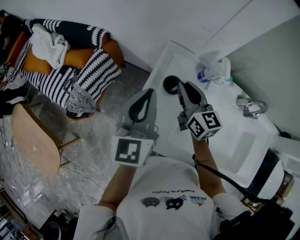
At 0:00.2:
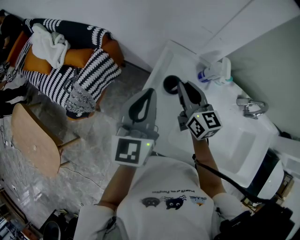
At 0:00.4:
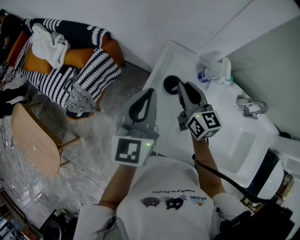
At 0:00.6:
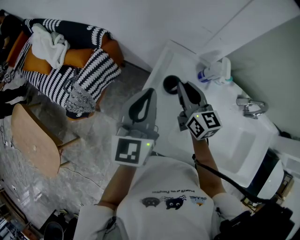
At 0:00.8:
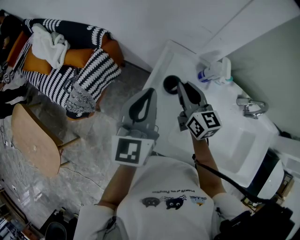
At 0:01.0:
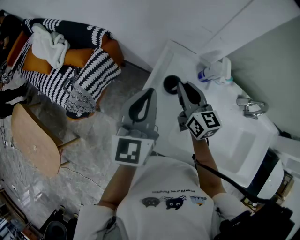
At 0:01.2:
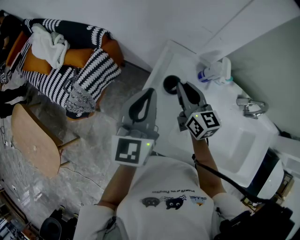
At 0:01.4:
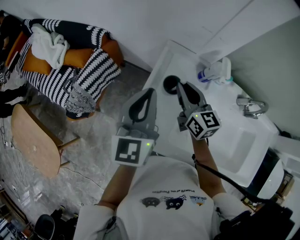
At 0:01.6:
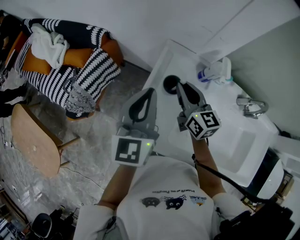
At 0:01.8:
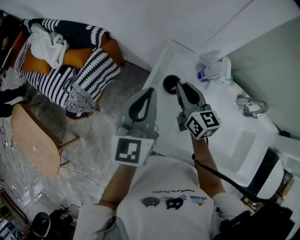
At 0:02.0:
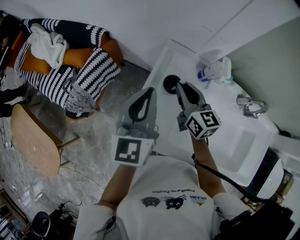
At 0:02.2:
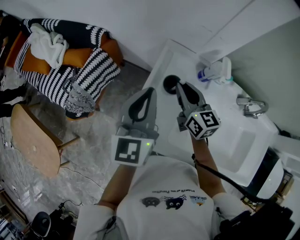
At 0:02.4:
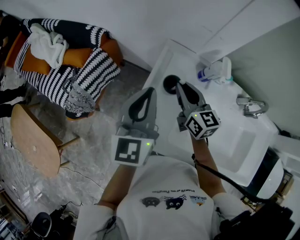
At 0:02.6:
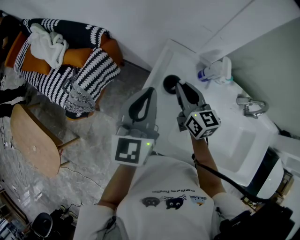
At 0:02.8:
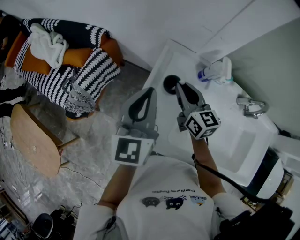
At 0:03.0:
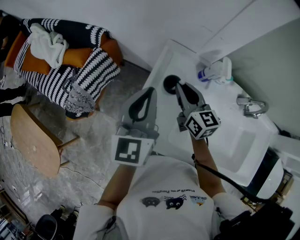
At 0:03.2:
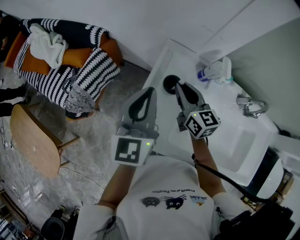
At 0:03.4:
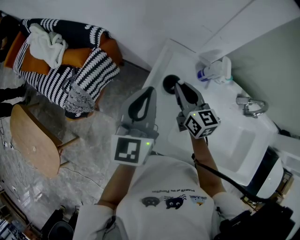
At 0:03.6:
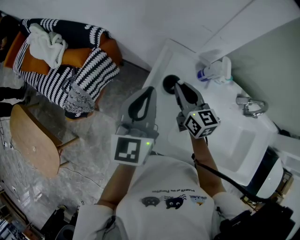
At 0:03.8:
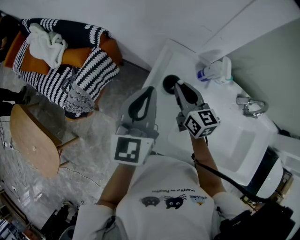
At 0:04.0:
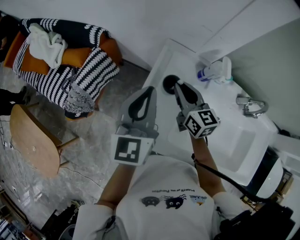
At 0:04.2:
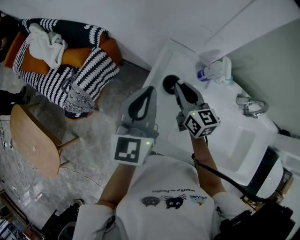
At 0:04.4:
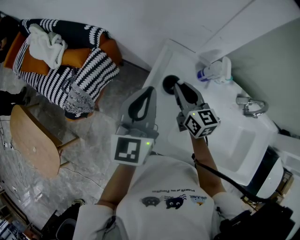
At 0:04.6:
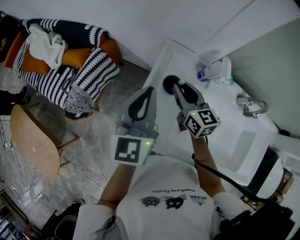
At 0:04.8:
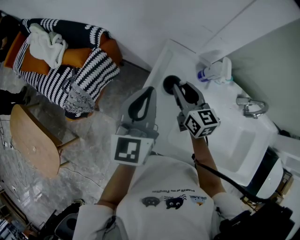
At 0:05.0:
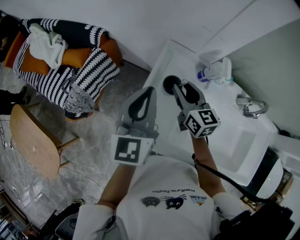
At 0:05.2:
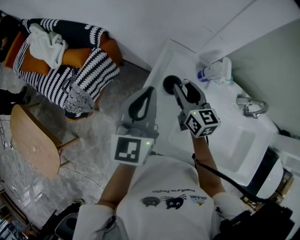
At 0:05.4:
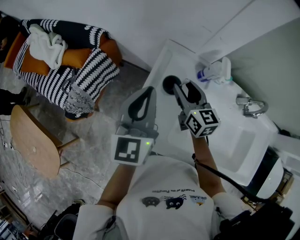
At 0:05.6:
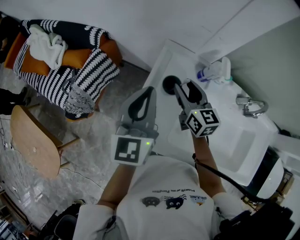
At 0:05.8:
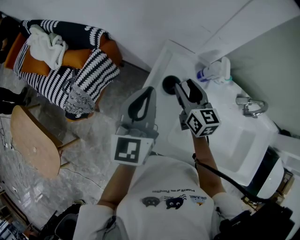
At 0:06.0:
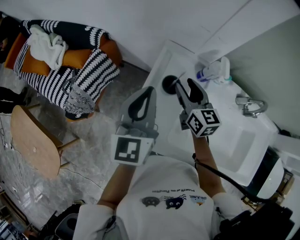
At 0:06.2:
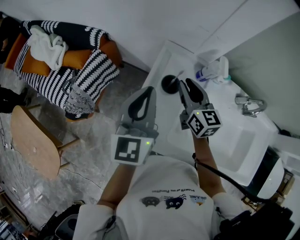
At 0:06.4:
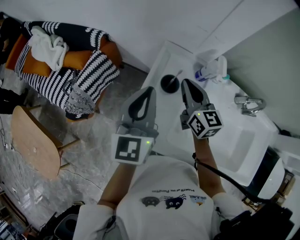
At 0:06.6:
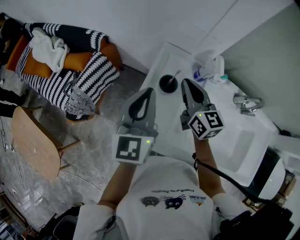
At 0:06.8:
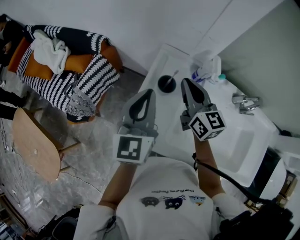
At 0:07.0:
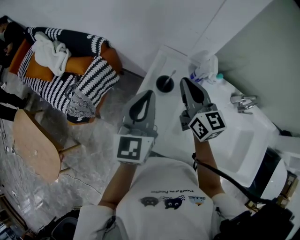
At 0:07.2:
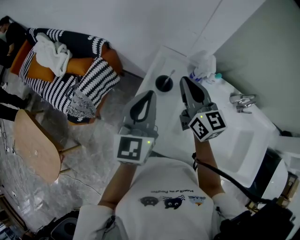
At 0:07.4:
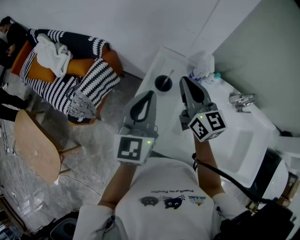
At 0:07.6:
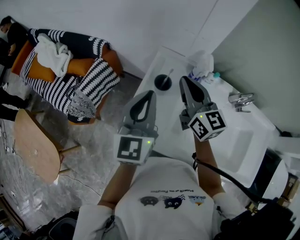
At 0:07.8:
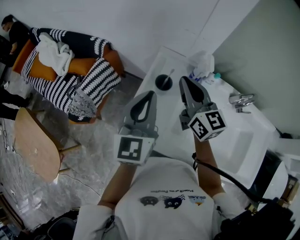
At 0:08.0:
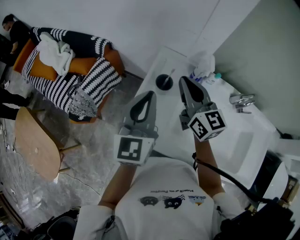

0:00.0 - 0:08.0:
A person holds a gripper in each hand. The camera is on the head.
0:00.0 - 0:01.6: The two grippers keep their place.
0:01.6 - 0:03.2: Neither gripper changes place.
0:03.2 - 0:04.8: Neither gripper changes place.
0:04.8 - 0:06.4: The right gripper closes up.
0:06.4 - 0:08.0: The left gripper heads backward, covering roughly 5 cm. The right gripper heads upward, covering about 10 cm.

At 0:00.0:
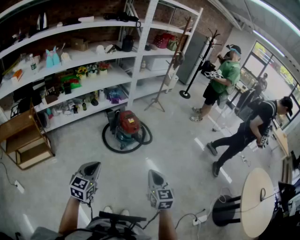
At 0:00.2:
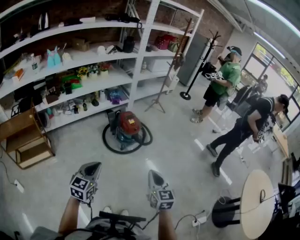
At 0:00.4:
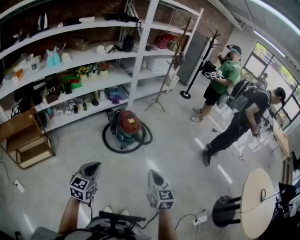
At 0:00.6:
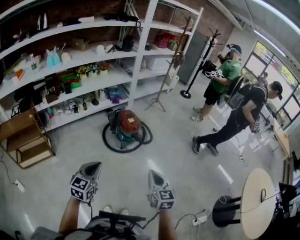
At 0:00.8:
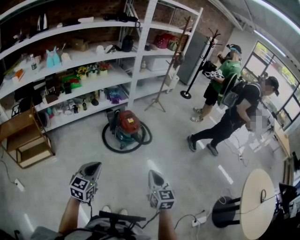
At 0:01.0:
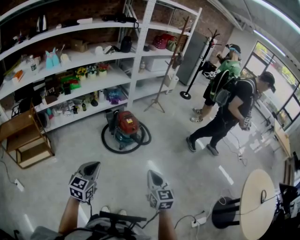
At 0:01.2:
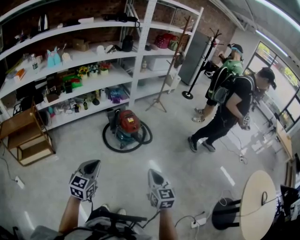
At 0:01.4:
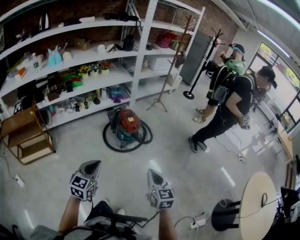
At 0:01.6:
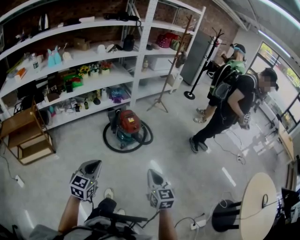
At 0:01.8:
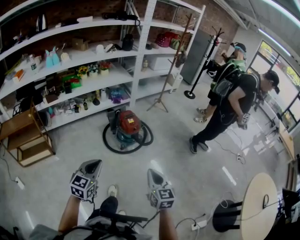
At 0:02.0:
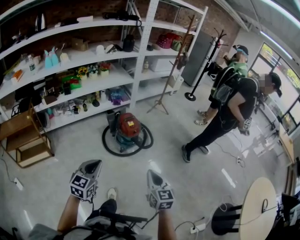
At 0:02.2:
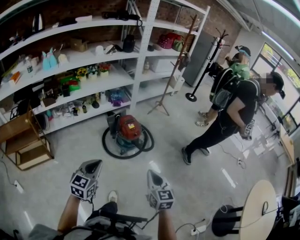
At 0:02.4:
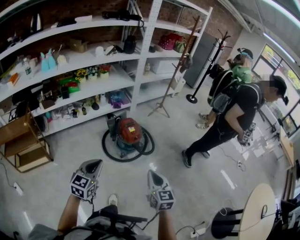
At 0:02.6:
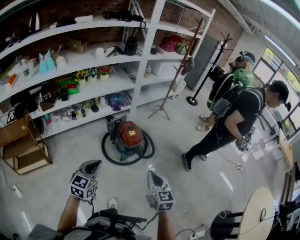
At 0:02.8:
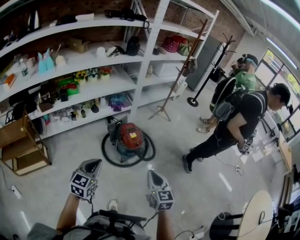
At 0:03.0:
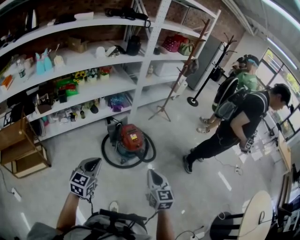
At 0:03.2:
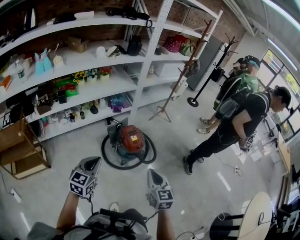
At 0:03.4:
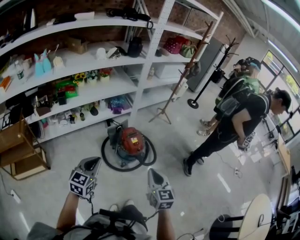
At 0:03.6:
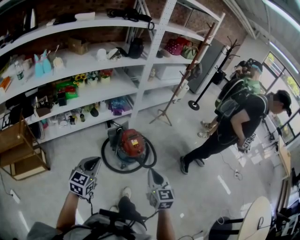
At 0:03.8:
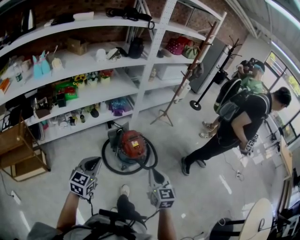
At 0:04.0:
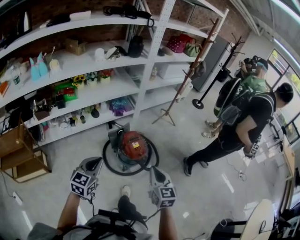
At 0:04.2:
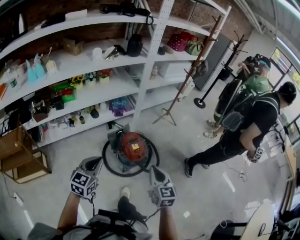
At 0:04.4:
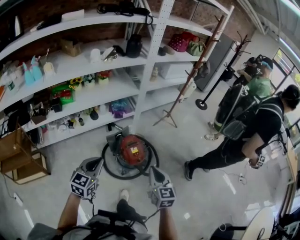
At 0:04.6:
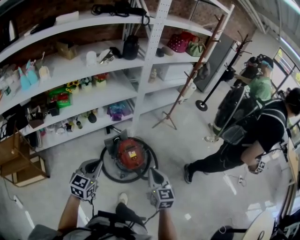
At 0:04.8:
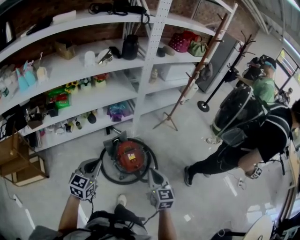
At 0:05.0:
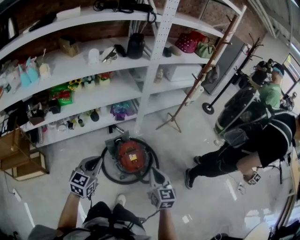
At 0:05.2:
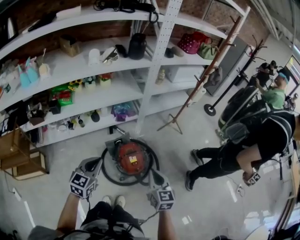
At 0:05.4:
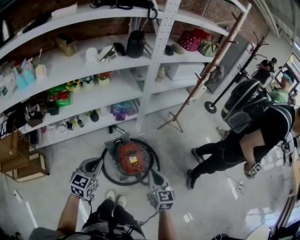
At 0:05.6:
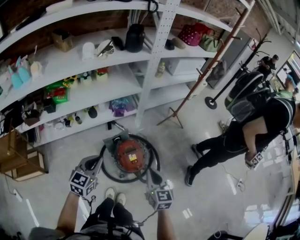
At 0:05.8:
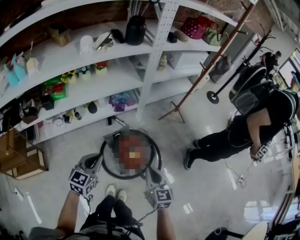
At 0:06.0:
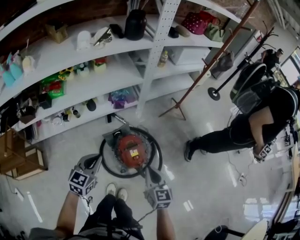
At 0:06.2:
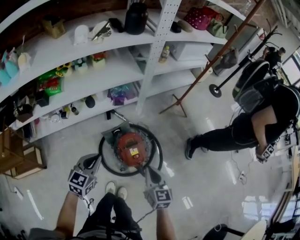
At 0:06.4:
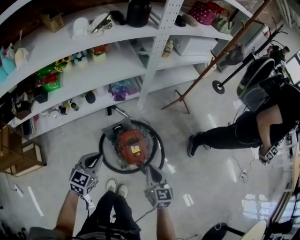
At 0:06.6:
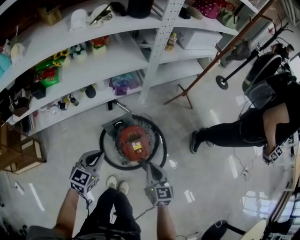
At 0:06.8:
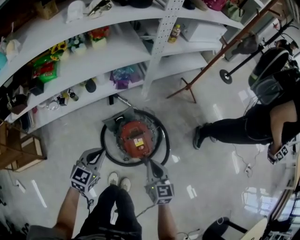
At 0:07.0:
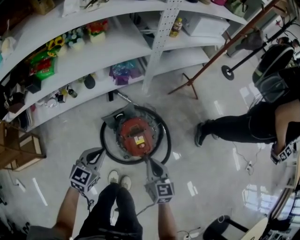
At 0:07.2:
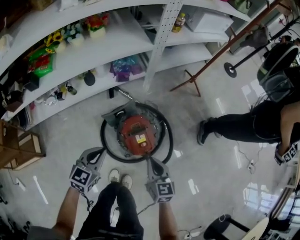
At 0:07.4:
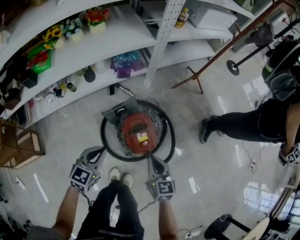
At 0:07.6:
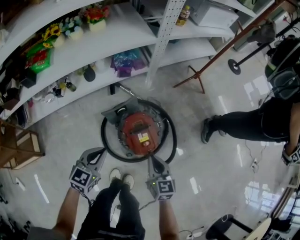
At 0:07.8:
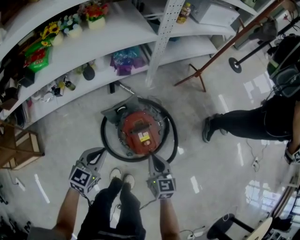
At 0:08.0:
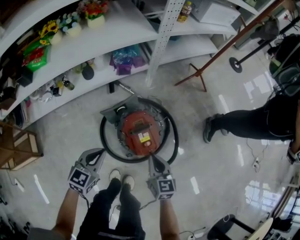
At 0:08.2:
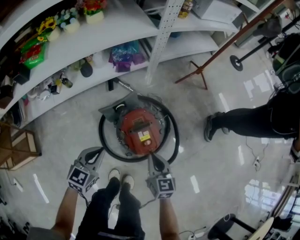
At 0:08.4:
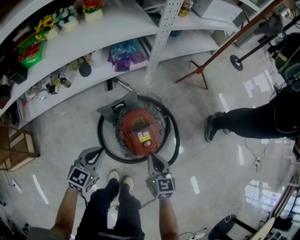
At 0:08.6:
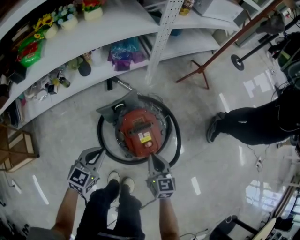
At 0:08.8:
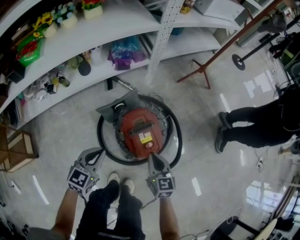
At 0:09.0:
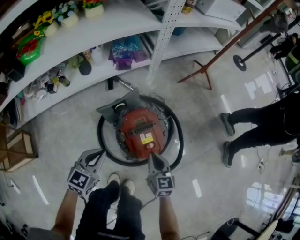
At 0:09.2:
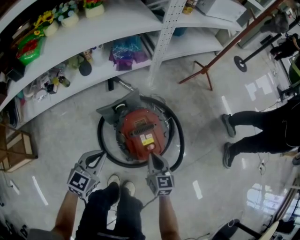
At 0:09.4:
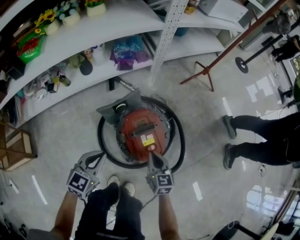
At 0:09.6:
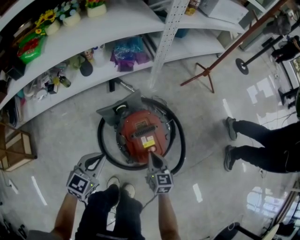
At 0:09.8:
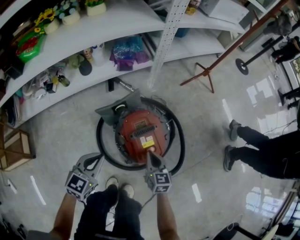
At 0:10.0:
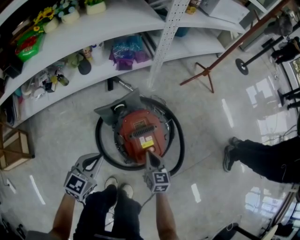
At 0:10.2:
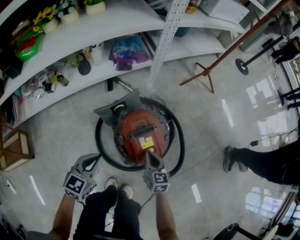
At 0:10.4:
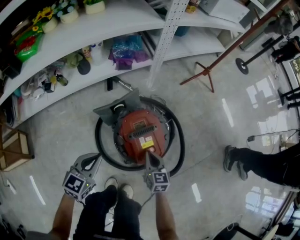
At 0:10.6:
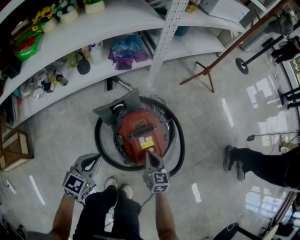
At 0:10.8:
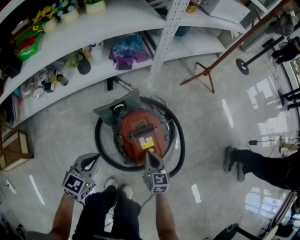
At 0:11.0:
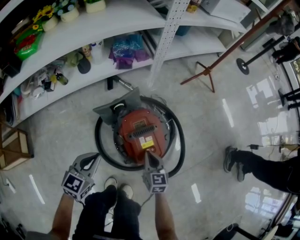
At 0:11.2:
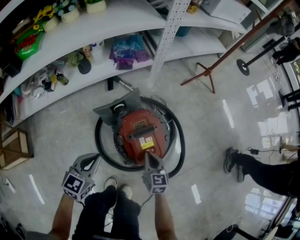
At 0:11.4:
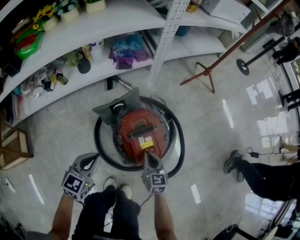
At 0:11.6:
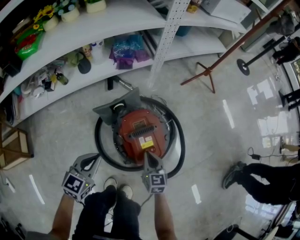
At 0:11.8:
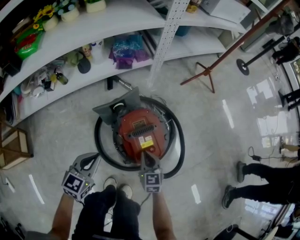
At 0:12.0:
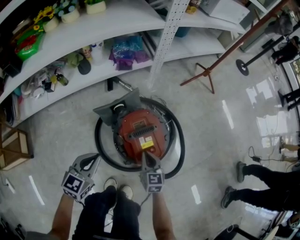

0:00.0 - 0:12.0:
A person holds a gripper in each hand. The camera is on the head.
0:00.0 - 0:01.6: Both grippers travel together to the right, roughly 5 cm.
0:01.6 - 0:03.0: The grippers both shift forward by roughly 25 cm.
0:03.0 - 0:04.4: Both grippers travel together forward, some 20 cm.
0:04.4 - 0:06.0: The grippers both shift forward and downward by some 20 cm.
0:06.0 - 0:07.6: Both grippers move downward, about 20 cm.
0:07.6 - 0:09.0: Both grippers travel together downward, approximately 15 cm.
0:09.0 - 0:10.4: The right gripper moves downward, some 10 cm.
0:10.4 - 0:12.0: The grippers stay close to where they were, moving slightly.

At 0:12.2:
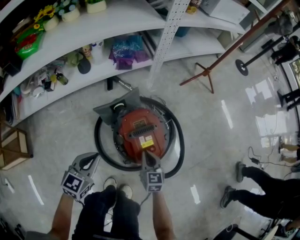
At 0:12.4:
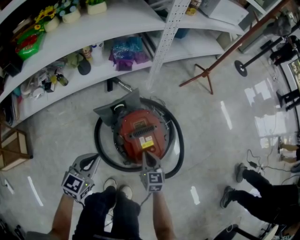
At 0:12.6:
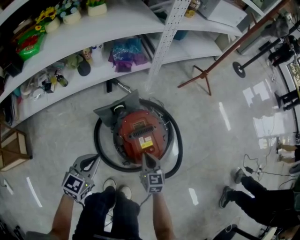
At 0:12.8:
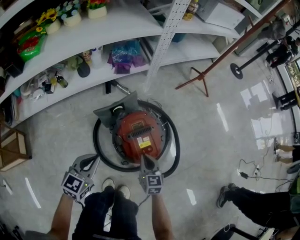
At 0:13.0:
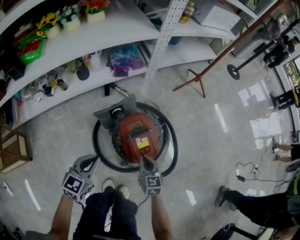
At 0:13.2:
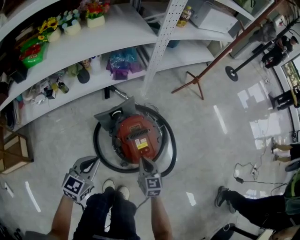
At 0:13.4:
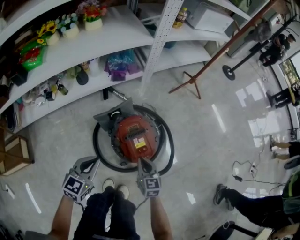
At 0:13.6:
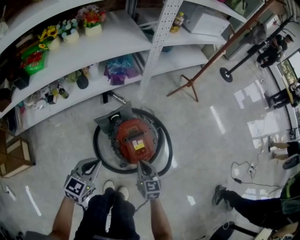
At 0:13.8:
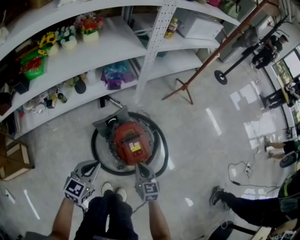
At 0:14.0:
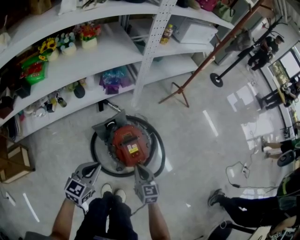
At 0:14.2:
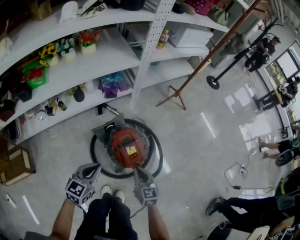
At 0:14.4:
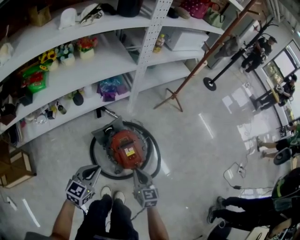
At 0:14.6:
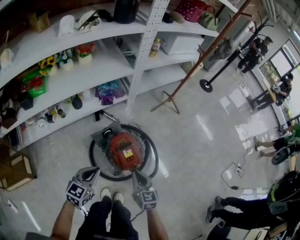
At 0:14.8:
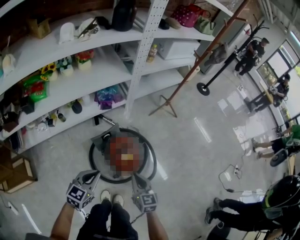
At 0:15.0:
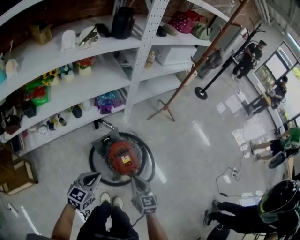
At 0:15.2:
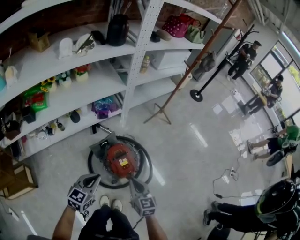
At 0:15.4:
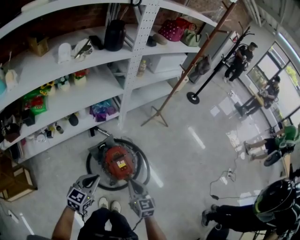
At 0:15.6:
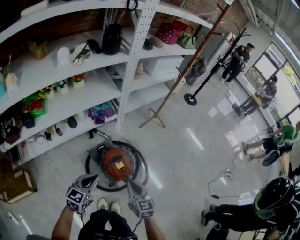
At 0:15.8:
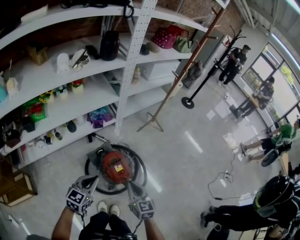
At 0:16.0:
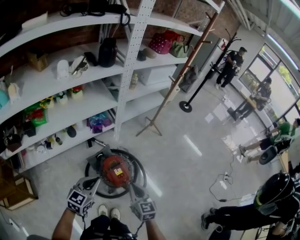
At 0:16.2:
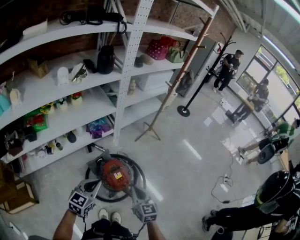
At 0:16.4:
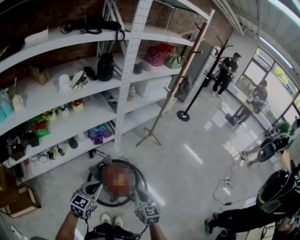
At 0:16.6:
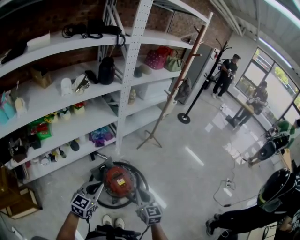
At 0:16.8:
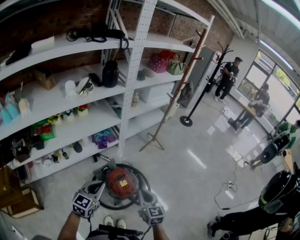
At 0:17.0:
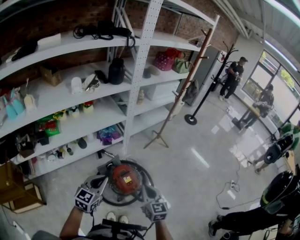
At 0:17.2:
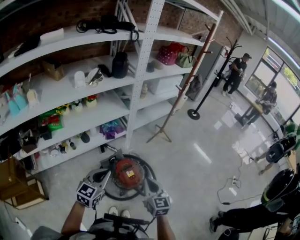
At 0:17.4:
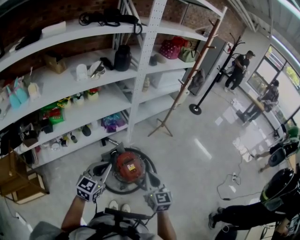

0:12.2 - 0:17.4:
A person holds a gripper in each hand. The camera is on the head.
0:12.2 - 0:14.0: Both grippers travel together upward, some 20 cm.
0:14.0 - 0:15.6: Both grippers move upward, about 25 cm.
0:15.6 - 0:17.4: The two grippers go approximately 15 cm upward.
